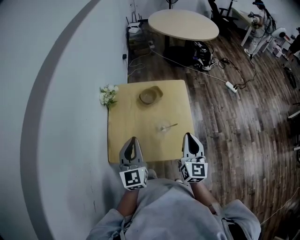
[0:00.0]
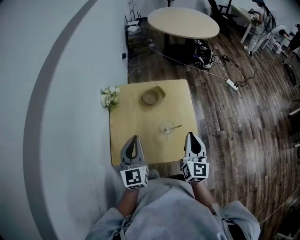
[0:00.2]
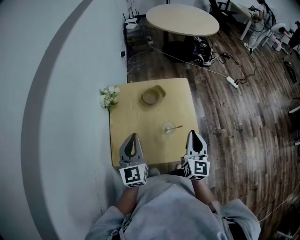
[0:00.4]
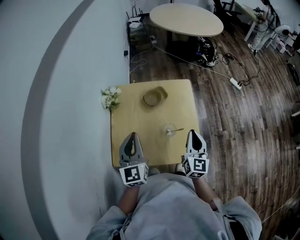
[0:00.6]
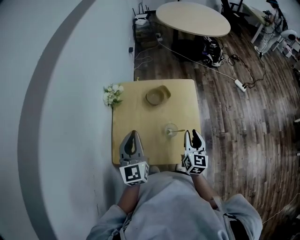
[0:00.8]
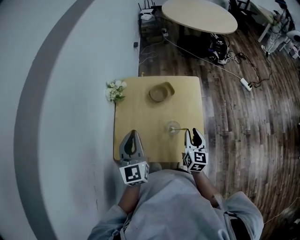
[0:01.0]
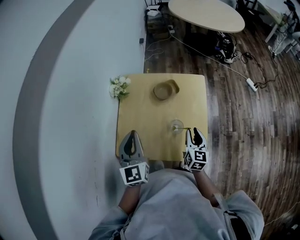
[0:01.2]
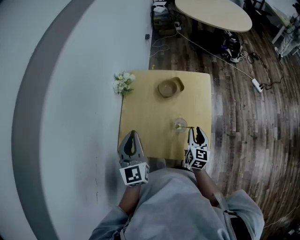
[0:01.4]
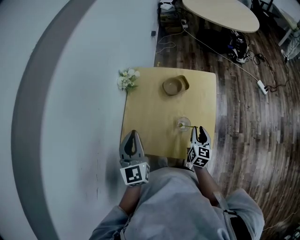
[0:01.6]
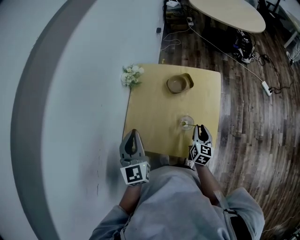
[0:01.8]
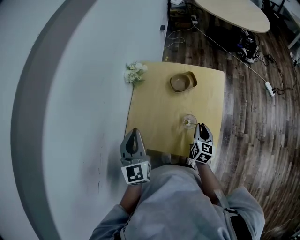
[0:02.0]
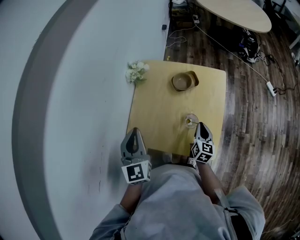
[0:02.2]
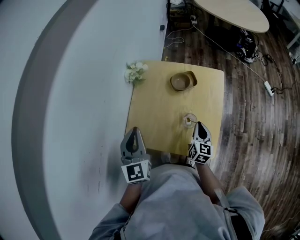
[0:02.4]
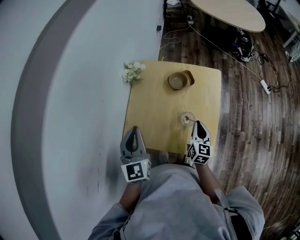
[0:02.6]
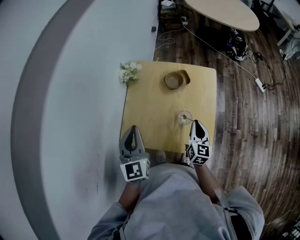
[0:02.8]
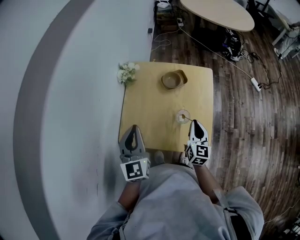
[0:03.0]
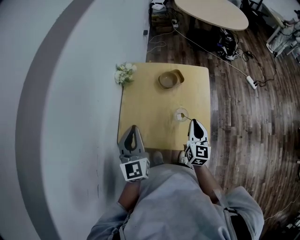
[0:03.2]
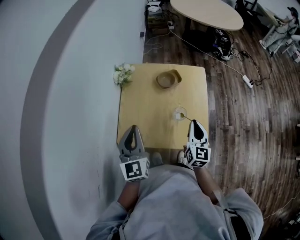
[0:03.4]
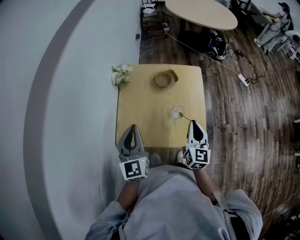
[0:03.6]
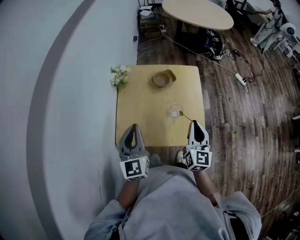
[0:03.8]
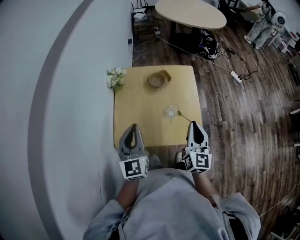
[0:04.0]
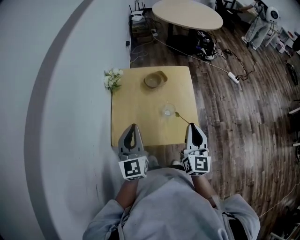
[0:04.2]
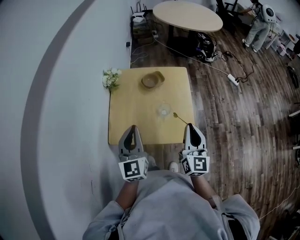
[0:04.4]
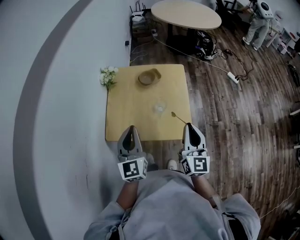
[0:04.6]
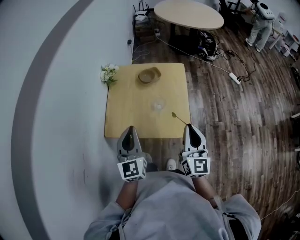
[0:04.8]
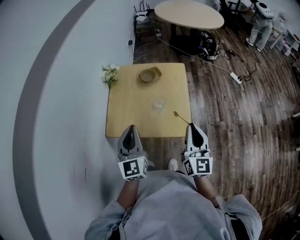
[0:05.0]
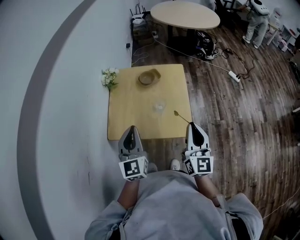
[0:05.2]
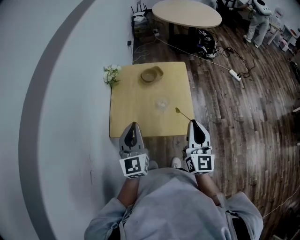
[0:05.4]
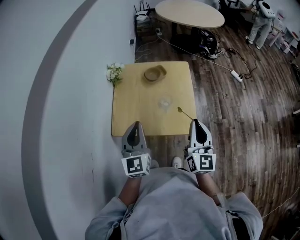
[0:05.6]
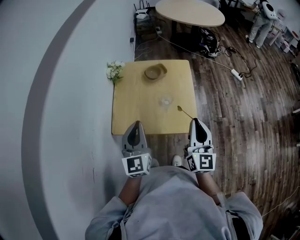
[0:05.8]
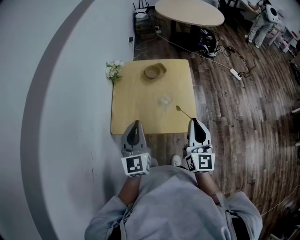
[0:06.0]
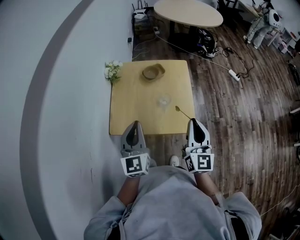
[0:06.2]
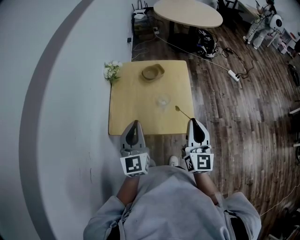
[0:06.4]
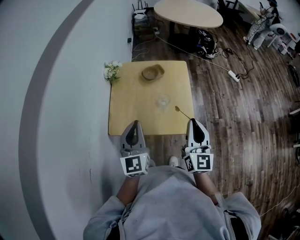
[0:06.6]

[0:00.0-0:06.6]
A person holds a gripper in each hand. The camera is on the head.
0:00.0 to 0:01.6: The right gripper travels downward and forward by some 20 cm, swivels approximately 20 degrees, and opens its fingers. The left gripper shifts by roughly 5 cm.
0:01.6 to 0:03.2: The right gripper travels upward by approximately 10 cm, and closes its fingers.
0:03.2 to 0:05.0: The right gripper moves backward, upward and to the right, approximately 20 cm. The left gripper travels backward and to the right by roughly 15 cm.
0:05.0 to 0:06.6: There are only small adjustments of the grippers.

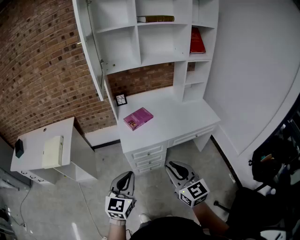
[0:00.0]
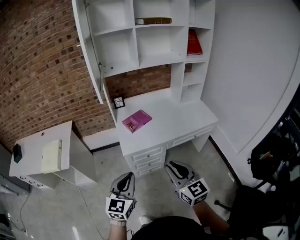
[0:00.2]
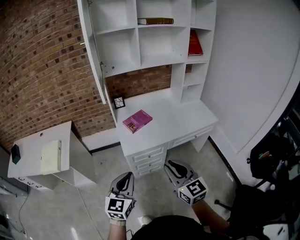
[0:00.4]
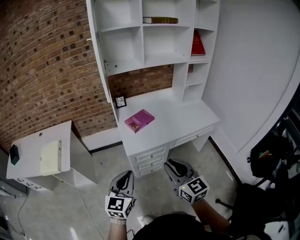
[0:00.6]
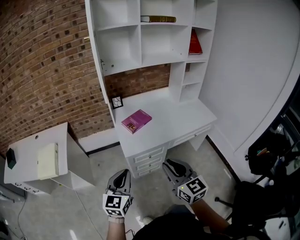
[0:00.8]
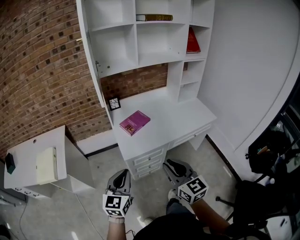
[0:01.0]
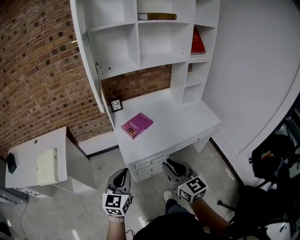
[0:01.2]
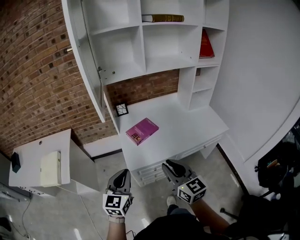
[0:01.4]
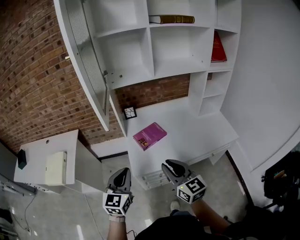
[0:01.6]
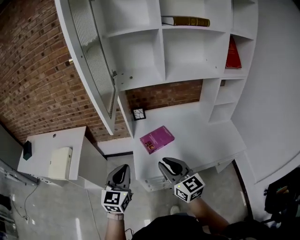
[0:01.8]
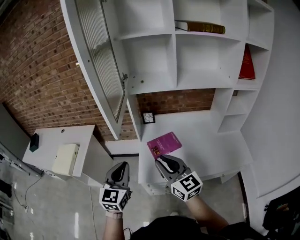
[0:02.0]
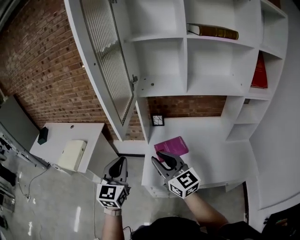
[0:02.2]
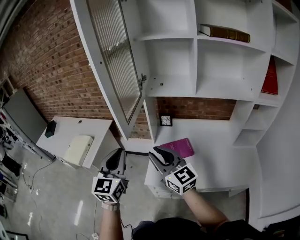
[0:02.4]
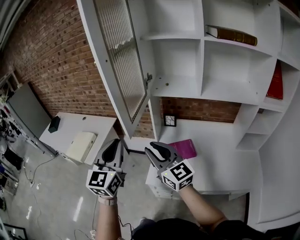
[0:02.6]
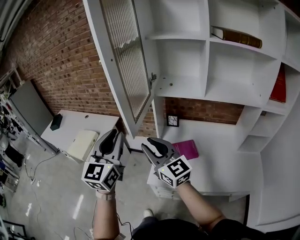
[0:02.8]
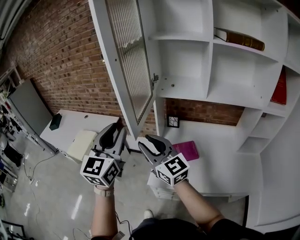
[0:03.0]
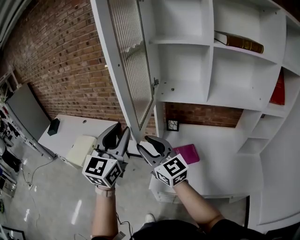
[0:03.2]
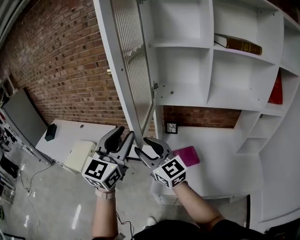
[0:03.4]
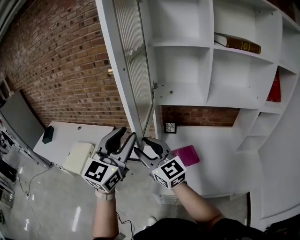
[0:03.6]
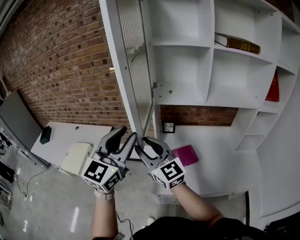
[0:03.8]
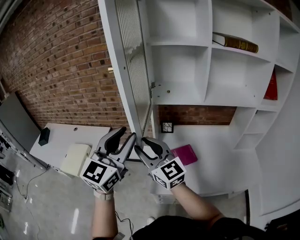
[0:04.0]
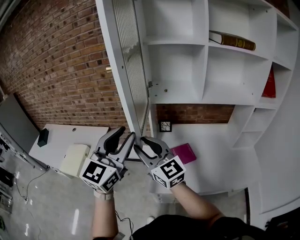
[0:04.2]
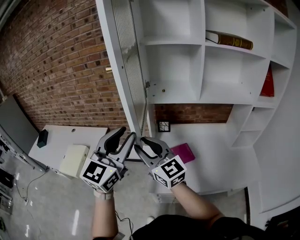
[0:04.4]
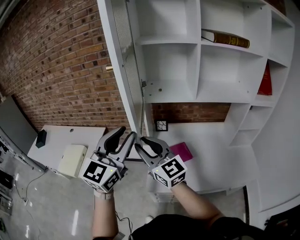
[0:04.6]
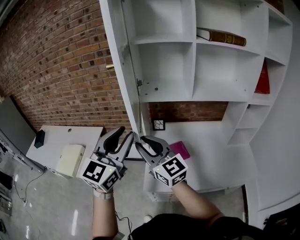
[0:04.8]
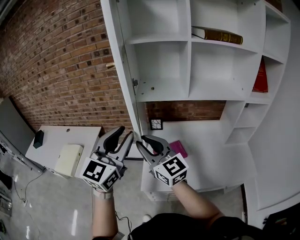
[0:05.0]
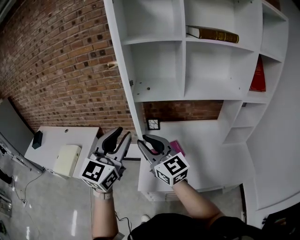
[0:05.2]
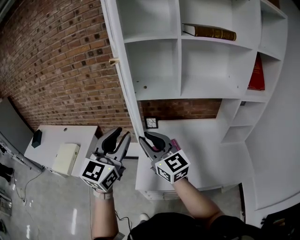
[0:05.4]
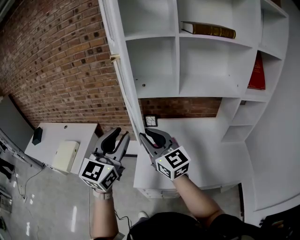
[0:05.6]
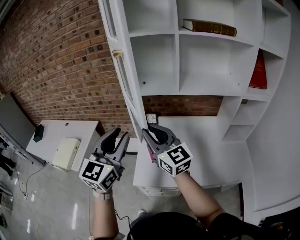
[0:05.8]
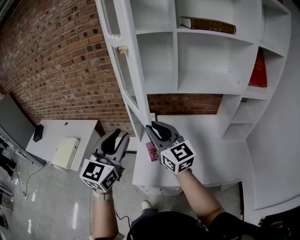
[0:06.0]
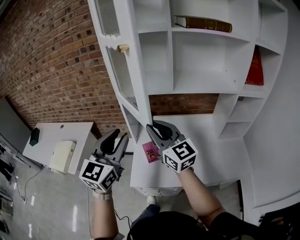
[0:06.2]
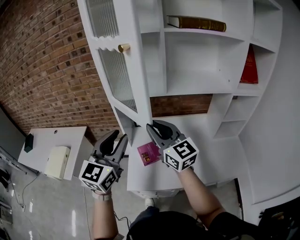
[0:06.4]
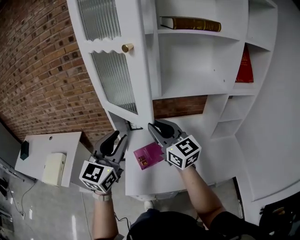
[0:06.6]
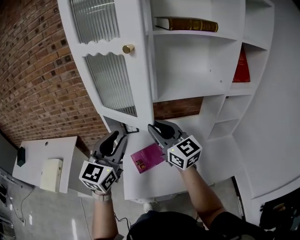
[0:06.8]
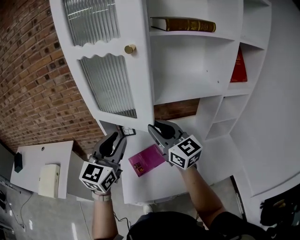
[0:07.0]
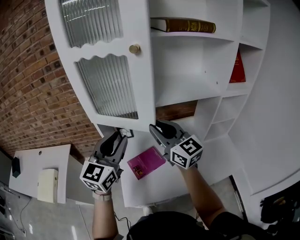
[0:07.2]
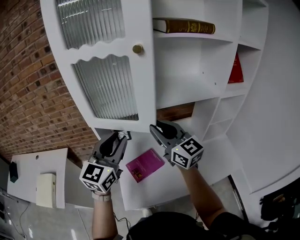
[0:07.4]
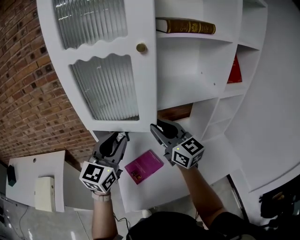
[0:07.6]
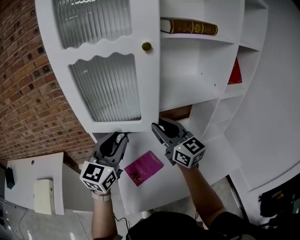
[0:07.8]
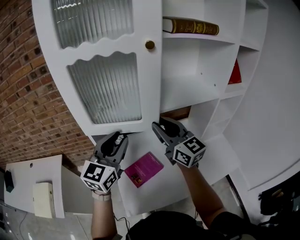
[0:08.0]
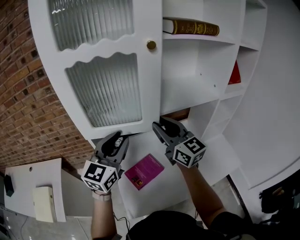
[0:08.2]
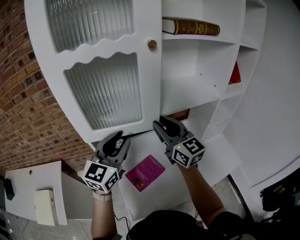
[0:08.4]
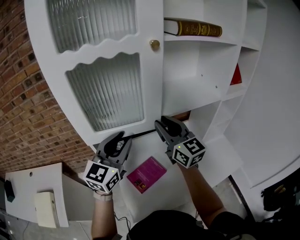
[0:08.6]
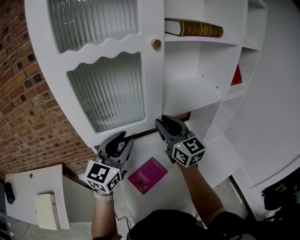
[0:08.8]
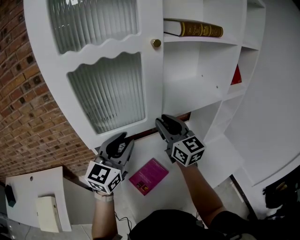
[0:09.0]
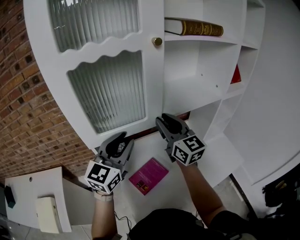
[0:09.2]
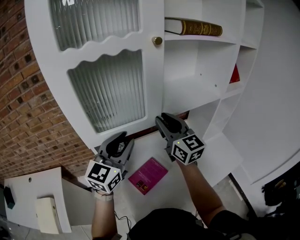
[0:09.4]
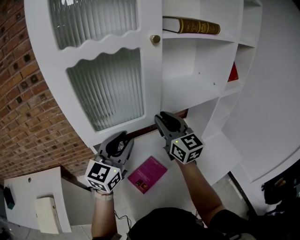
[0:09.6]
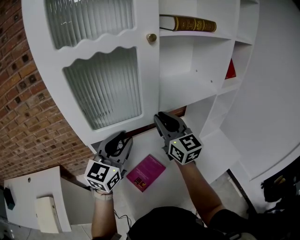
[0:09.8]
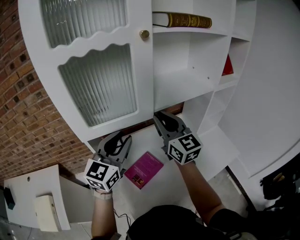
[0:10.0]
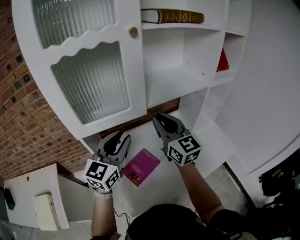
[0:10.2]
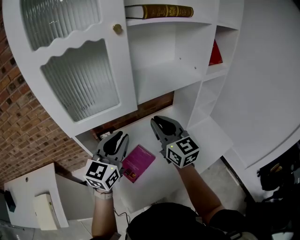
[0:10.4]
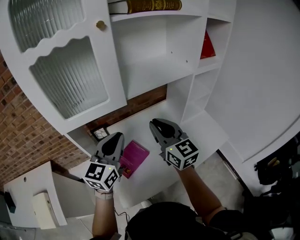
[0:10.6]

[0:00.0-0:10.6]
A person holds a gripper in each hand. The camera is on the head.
0:00.0 to 0:01.6: The two grippers go some 25 cm forward.
0:01.6 to 0:03.0: The right gripper changes place by some 25 cm, and turns by roughly 40 degrees; the left gripper is displaced upward by some 25 cm, turns by approximately 30 degrees, and opens.
0:03.0 to 0:04.6: The left gripper rotates roughly 20 degrees.
0:04.6 to 0:06.0: The right gripper is displaced to the right by roughly 15 cm; the left gripper goes about 10 cm to the right and downward.
0:06.0 to 0:07.6: The right gripper travels forward and to the right by approximately 15 cm, while the left gripper goes some 15 cm forward.
0:07.6 to 0:09.0: The grippers both shift forward by some 10 cm.
0:09.0 to 0:10.6: The right gripper heads backward, to the right and downward, covering approximately 15 cm, while the left gripper heads to the right and downward, covering some 10 cm, and closes its fingers.

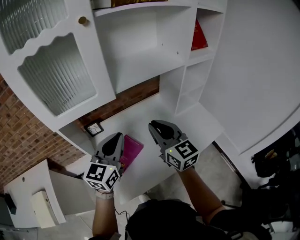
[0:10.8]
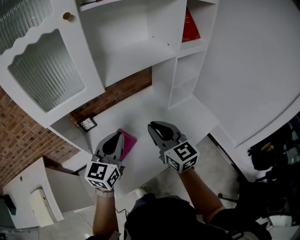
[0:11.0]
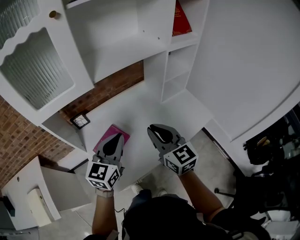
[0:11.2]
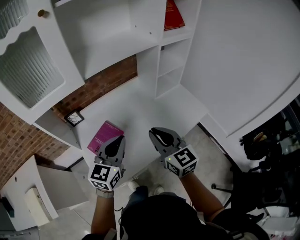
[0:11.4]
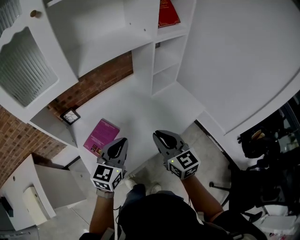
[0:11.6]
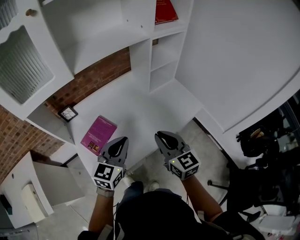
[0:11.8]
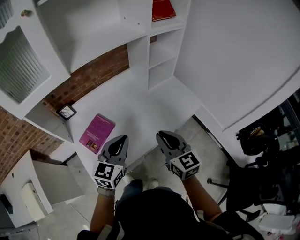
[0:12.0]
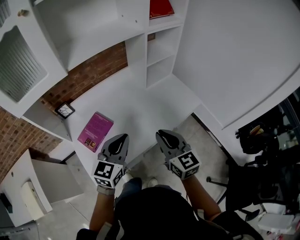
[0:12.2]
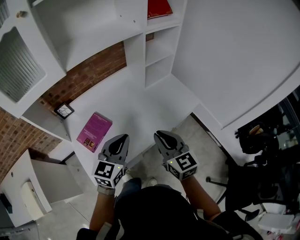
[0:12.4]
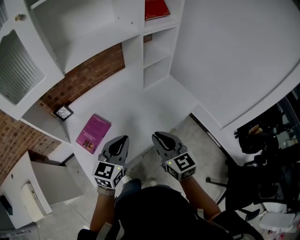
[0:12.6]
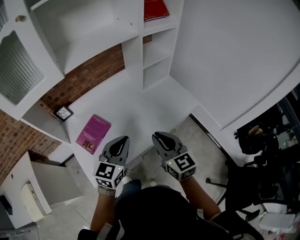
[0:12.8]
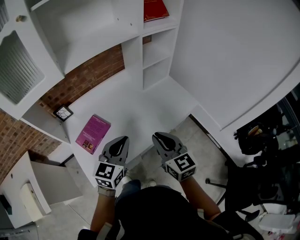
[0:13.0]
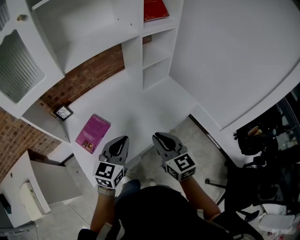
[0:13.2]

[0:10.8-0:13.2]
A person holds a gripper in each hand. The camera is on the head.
0:10.8 to 0:12.0: Both grippers travel together to the right, downward and backward, approximately 25 cm.
0:12.0 to 0:13.2: The grippers stay close to where they were, moving slightly.

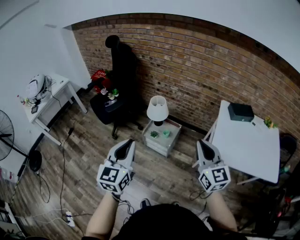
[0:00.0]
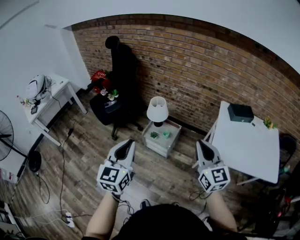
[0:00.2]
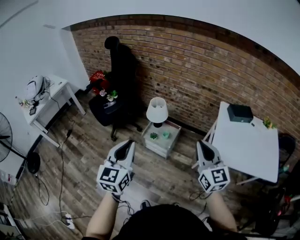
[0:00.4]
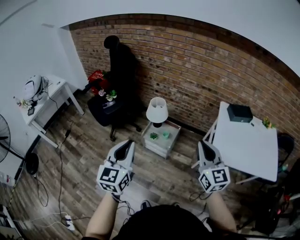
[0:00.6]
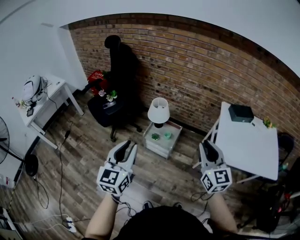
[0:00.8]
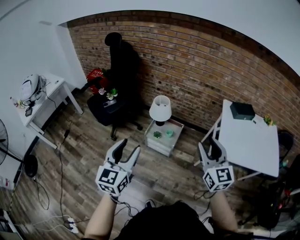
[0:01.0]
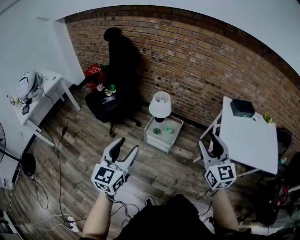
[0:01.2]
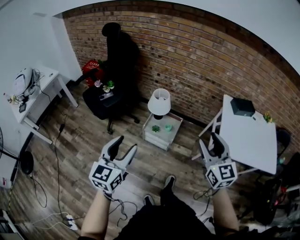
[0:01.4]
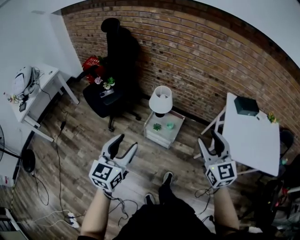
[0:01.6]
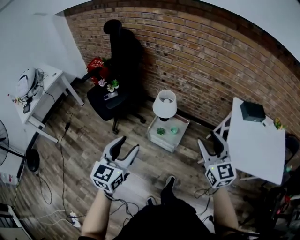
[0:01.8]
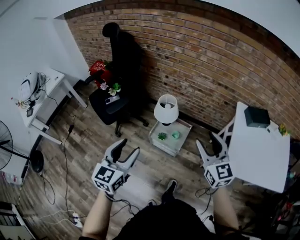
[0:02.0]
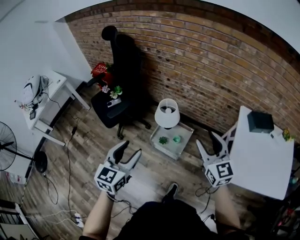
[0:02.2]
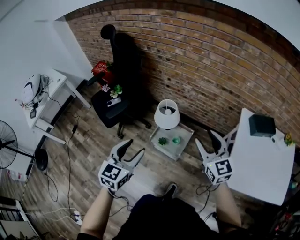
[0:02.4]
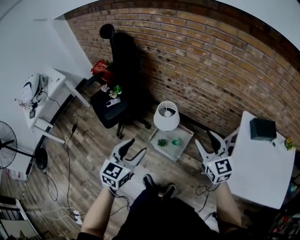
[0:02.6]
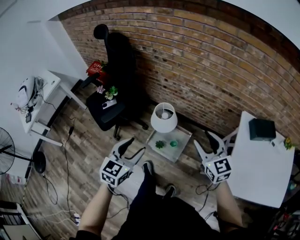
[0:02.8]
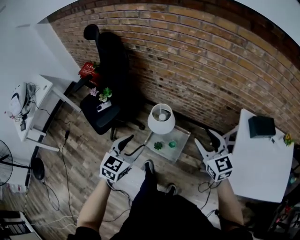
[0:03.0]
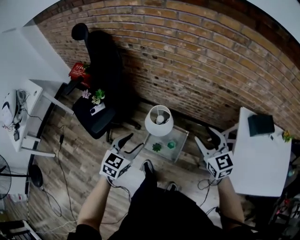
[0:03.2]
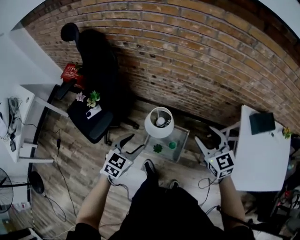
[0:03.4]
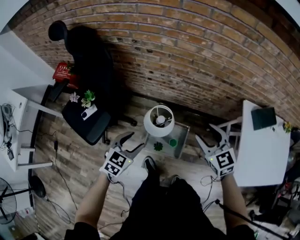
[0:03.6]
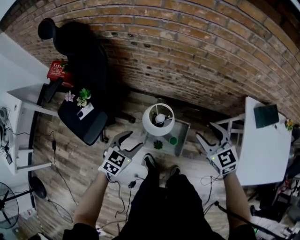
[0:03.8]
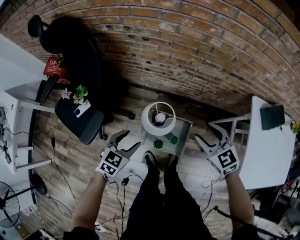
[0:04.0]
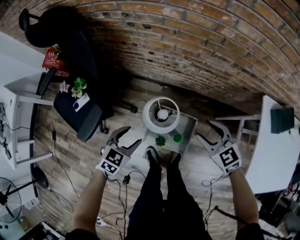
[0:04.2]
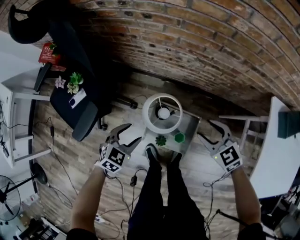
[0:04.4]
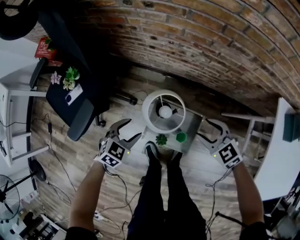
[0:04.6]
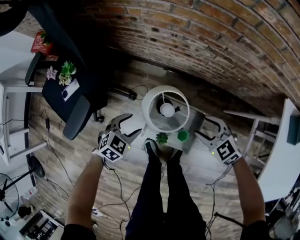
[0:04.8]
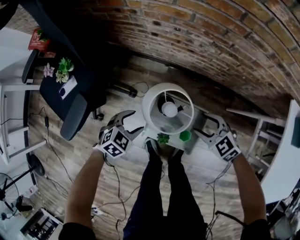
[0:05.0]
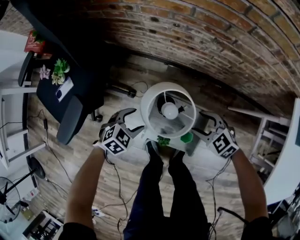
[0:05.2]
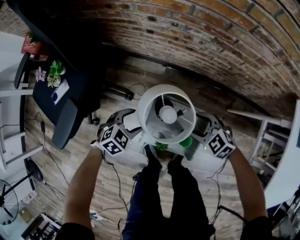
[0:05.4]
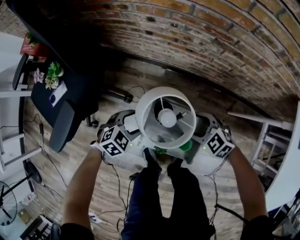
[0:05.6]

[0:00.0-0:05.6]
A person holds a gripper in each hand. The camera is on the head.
0:00.0 to 0:01.4: Both grippers travel together to the left, about 10 cm. The right gripper opens its fingers. The left gripper opens.
0:01.4 to 0:02.8: Both grippers travel together forward, approximately 30 cm.
0:02.8 to 0:04.2: Both grippers travel together downward and forward, roughly 35 cm. The right gripper turns by approximately 30 degrees; the left gripper rotates approximately 30 degrees.
0:04.2 to 0:05.6: The grippers both shift downward by some 30 cm. The left gripper changes its angle by about 20 degrees. Meanwhile the right gripper turns by some 30 degrees.
